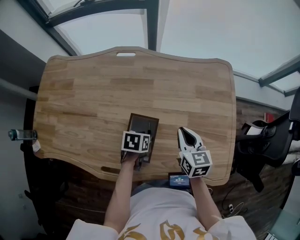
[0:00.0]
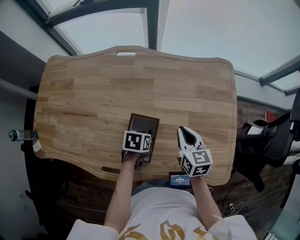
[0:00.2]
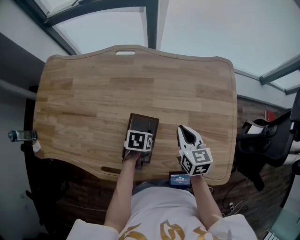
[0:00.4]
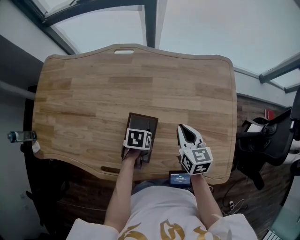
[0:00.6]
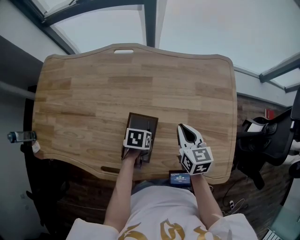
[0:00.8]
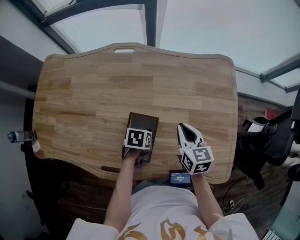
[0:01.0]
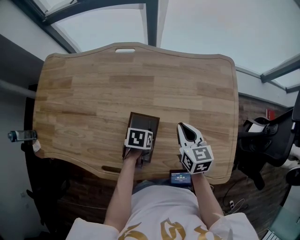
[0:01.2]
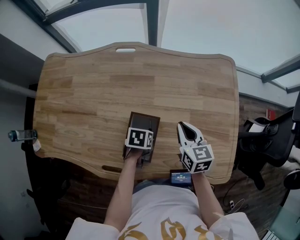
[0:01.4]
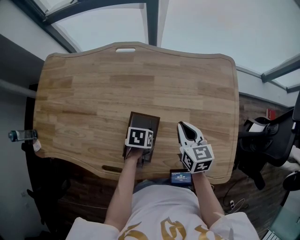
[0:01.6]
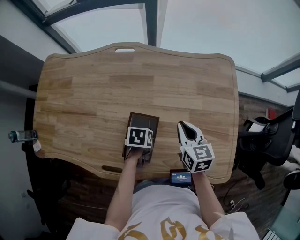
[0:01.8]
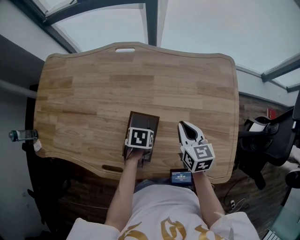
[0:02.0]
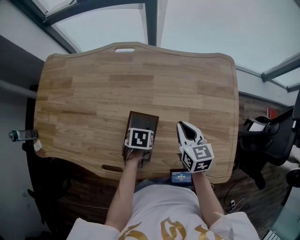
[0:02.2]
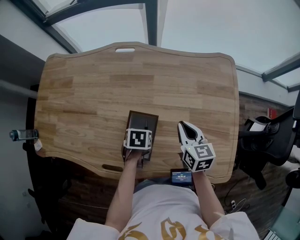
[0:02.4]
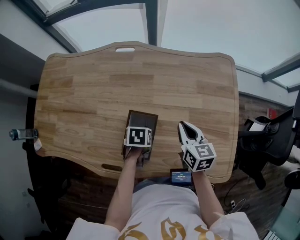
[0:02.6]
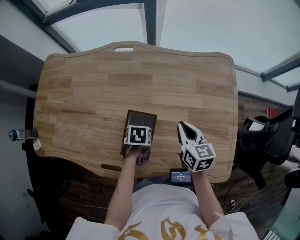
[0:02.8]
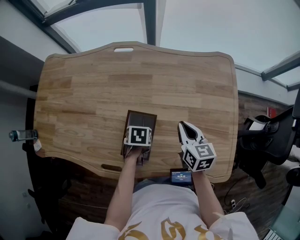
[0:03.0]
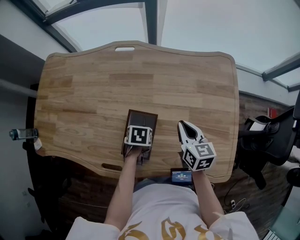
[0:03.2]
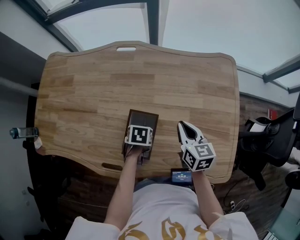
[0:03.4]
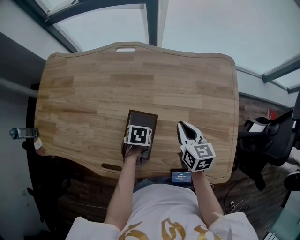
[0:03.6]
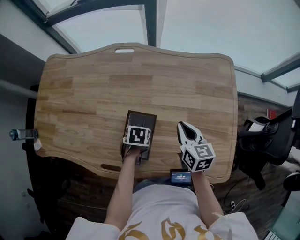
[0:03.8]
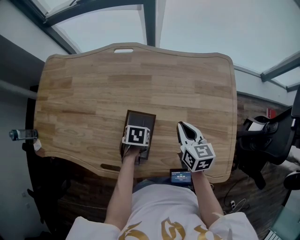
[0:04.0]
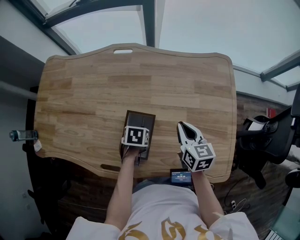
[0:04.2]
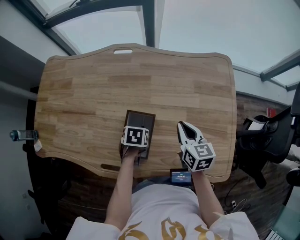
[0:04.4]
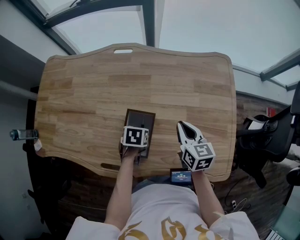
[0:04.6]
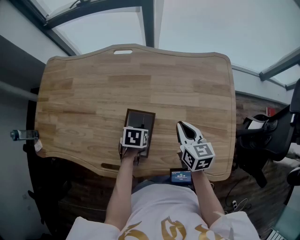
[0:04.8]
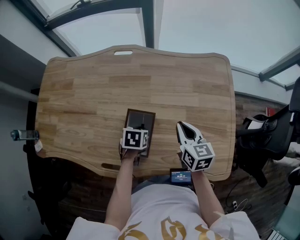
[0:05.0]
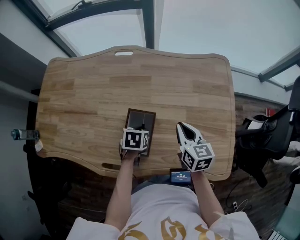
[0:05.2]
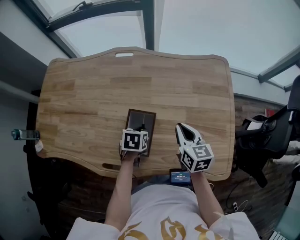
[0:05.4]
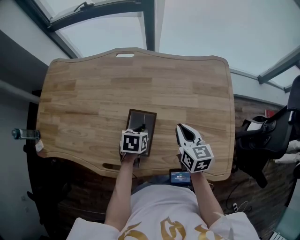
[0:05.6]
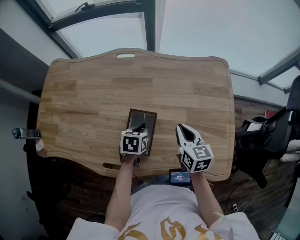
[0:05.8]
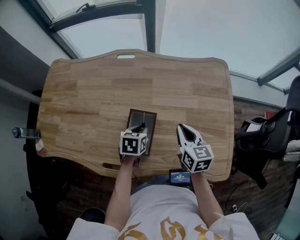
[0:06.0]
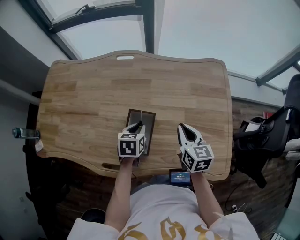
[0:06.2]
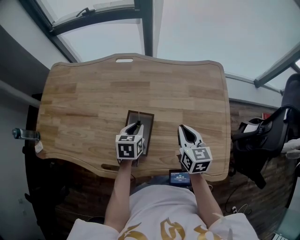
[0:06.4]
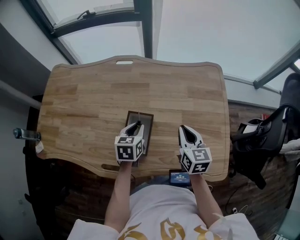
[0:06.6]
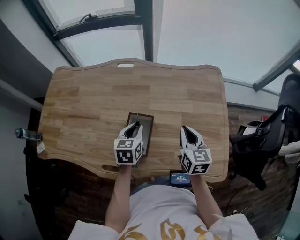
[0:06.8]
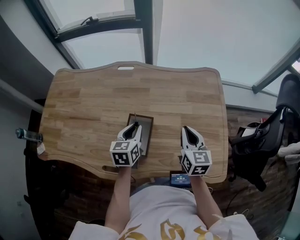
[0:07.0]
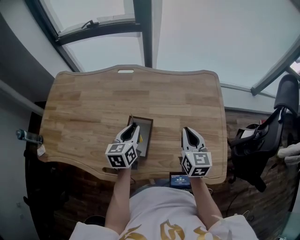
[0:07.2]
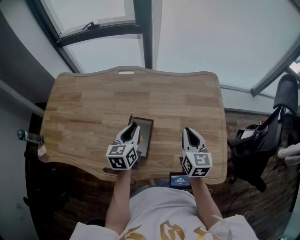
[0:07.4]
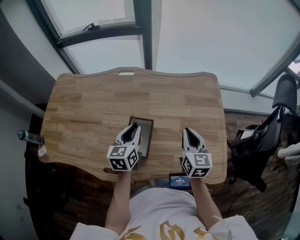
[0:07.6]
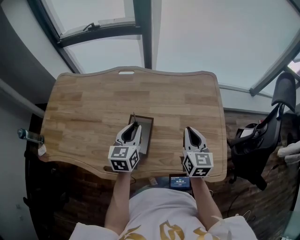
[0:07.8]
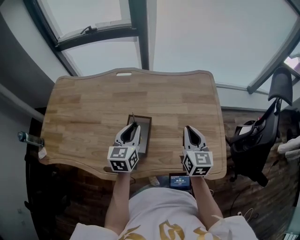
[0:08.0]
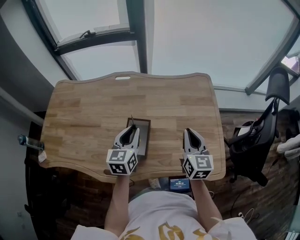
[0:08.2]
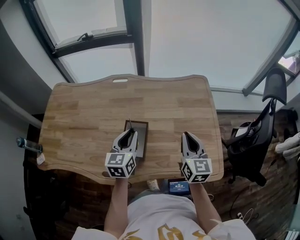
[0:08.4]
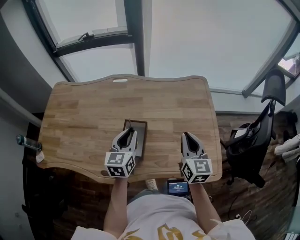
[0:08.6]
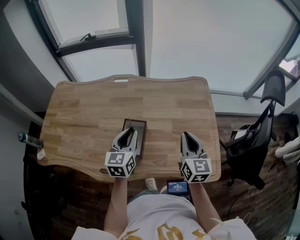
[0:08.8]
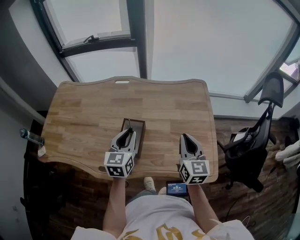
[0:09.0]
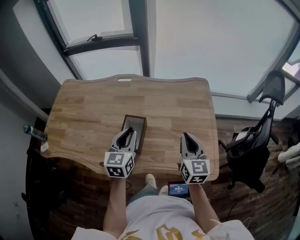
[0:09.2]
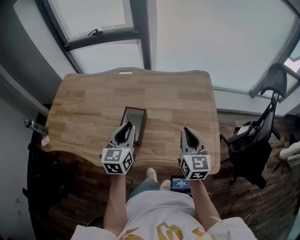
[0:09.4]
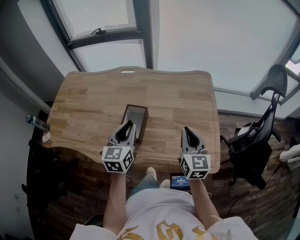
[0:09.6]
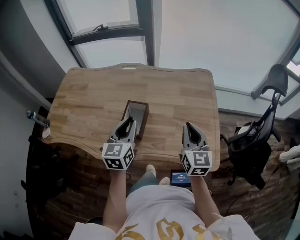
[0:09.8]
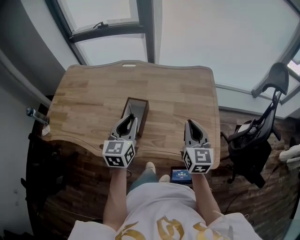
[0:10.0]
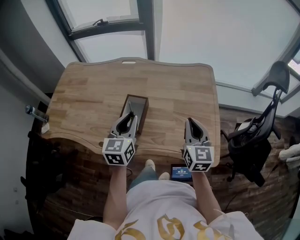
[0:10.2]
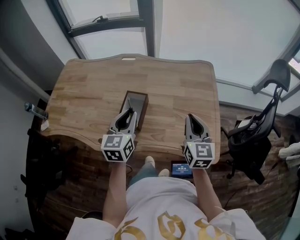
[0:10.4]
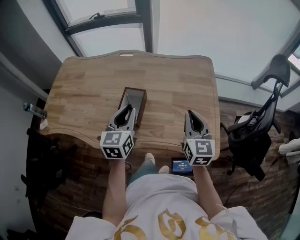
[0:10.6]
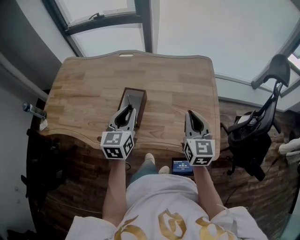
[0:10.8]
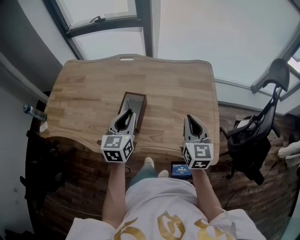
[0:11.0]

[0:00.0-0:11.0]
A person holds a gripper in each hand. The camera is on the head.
0:00.0 to 0:04.8: The grippers stay close to where they were, moving slightly.
0:04.8 to 0:06.2: The left gripper goes approximately 5 cm upward, and turns by about 20 degrees.
0:06.2 to 0:07.8: The right gripper is displaced upward by roughly 5 cm. Meanwhile the left gripper heads upward, covering about 15 cm, and swivels about 30 degrees.
0:07.8 to 0:09.4: The right gripper heads backward, covering about 10 cm; the left gripper heads backward and upward, covering approximately 10 cm.
0:09.4 to 0:11.0: The grippers move only a little.

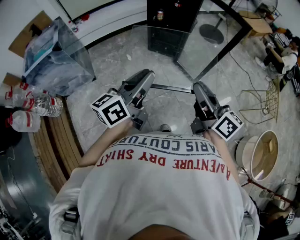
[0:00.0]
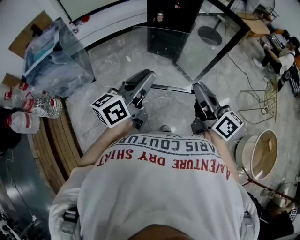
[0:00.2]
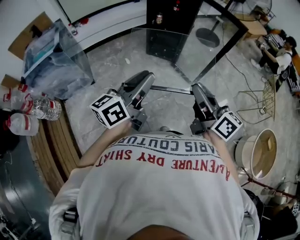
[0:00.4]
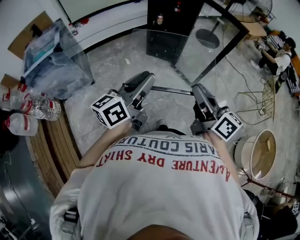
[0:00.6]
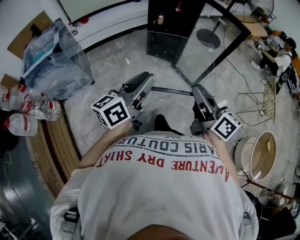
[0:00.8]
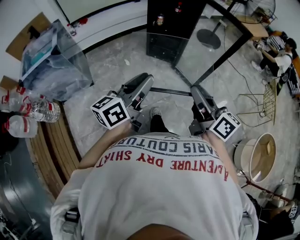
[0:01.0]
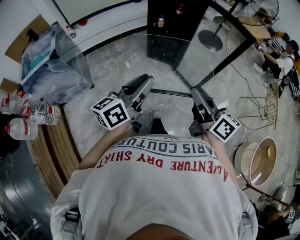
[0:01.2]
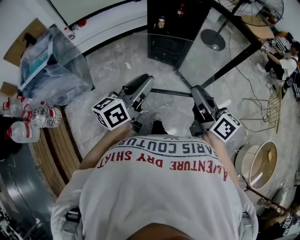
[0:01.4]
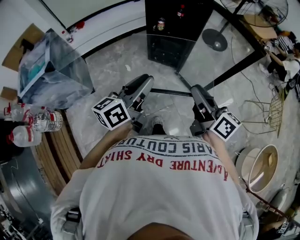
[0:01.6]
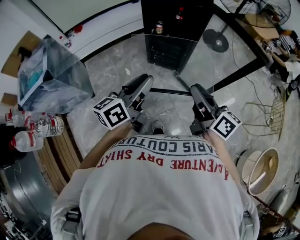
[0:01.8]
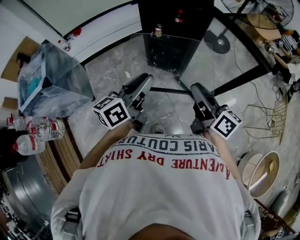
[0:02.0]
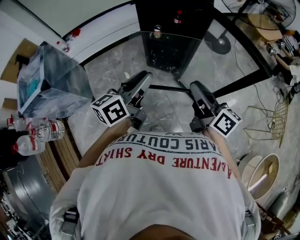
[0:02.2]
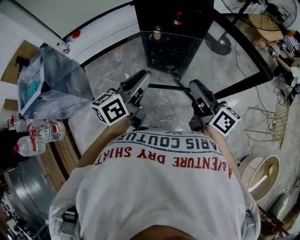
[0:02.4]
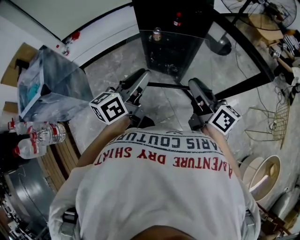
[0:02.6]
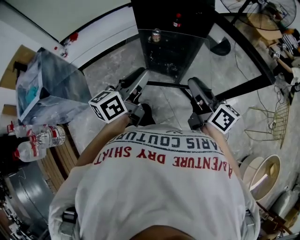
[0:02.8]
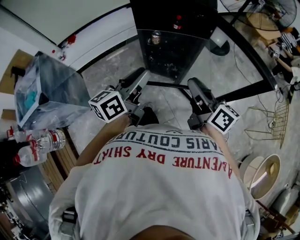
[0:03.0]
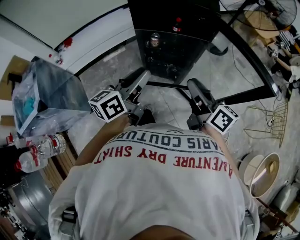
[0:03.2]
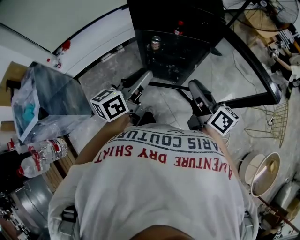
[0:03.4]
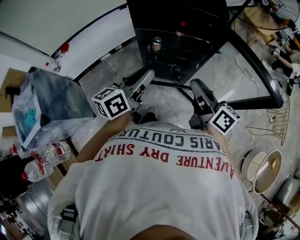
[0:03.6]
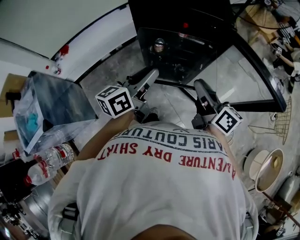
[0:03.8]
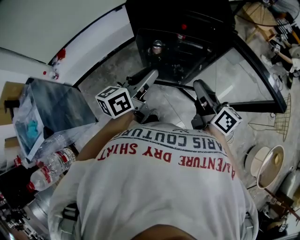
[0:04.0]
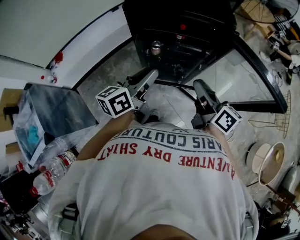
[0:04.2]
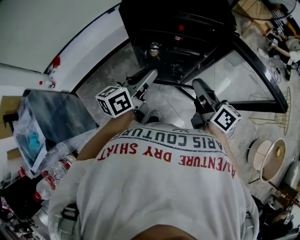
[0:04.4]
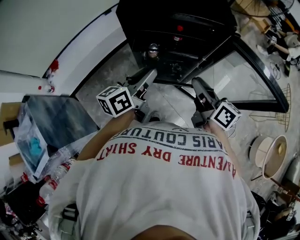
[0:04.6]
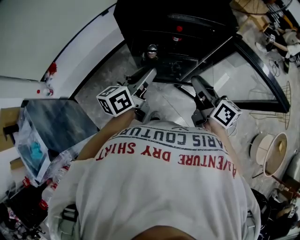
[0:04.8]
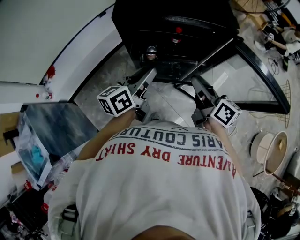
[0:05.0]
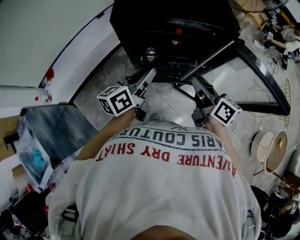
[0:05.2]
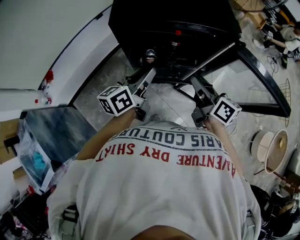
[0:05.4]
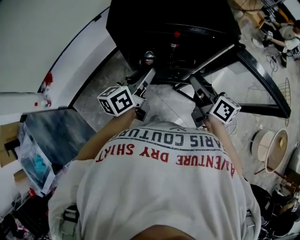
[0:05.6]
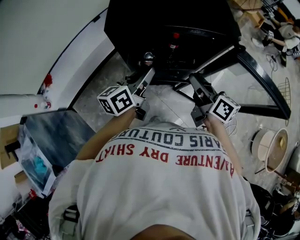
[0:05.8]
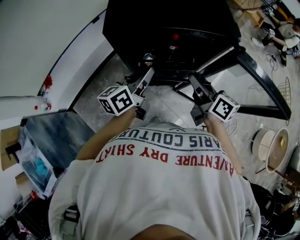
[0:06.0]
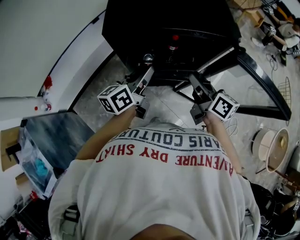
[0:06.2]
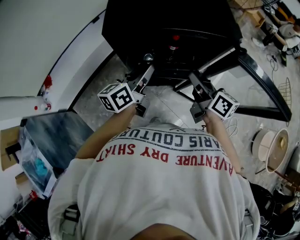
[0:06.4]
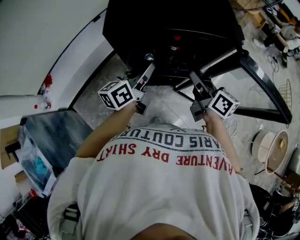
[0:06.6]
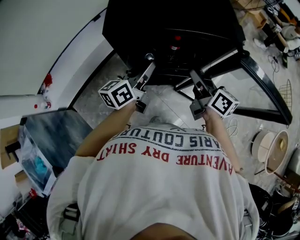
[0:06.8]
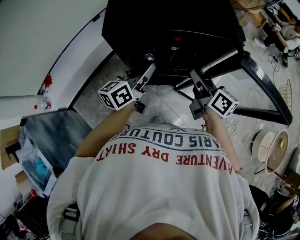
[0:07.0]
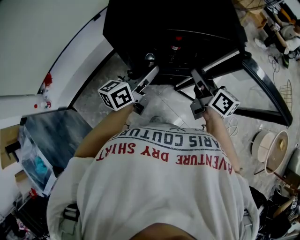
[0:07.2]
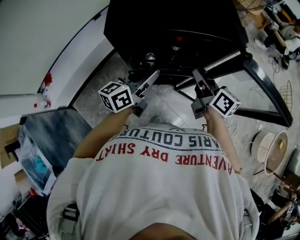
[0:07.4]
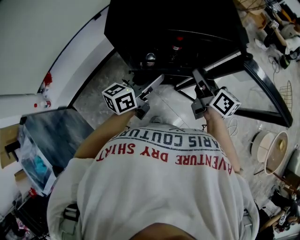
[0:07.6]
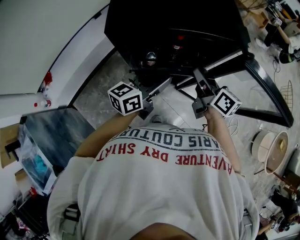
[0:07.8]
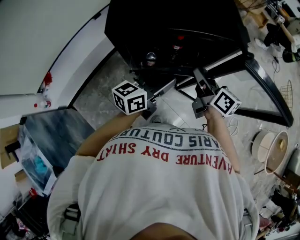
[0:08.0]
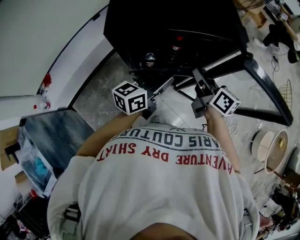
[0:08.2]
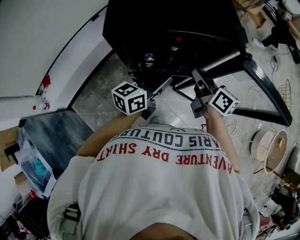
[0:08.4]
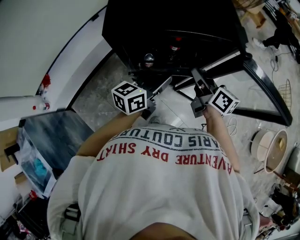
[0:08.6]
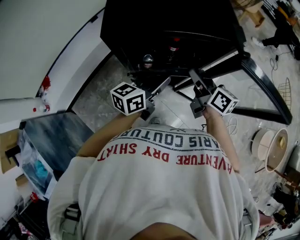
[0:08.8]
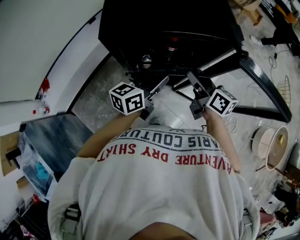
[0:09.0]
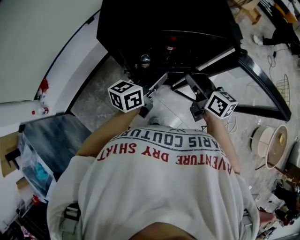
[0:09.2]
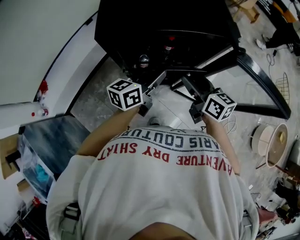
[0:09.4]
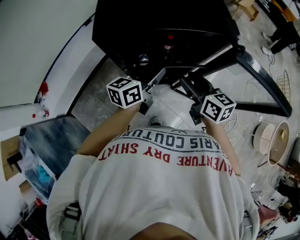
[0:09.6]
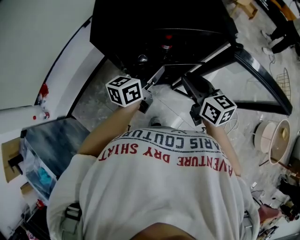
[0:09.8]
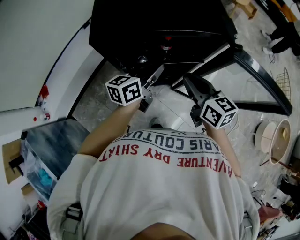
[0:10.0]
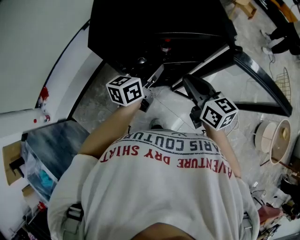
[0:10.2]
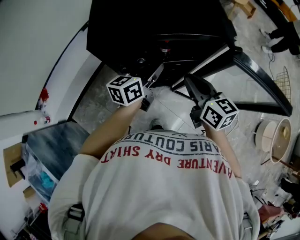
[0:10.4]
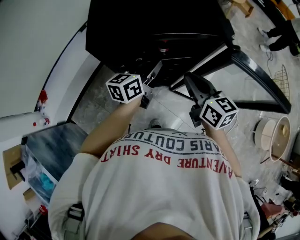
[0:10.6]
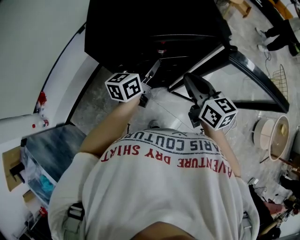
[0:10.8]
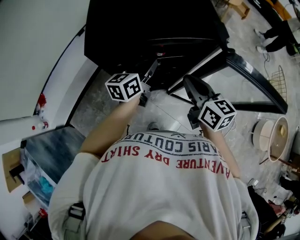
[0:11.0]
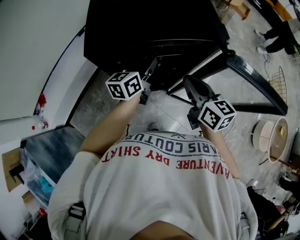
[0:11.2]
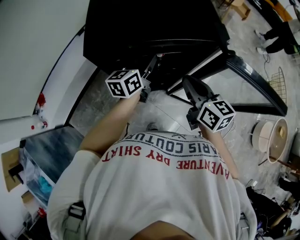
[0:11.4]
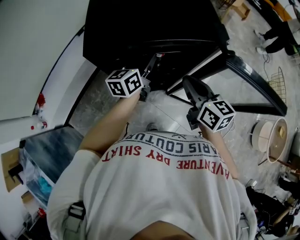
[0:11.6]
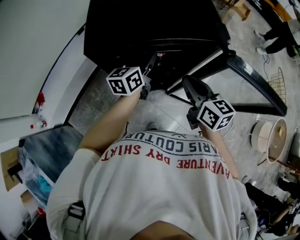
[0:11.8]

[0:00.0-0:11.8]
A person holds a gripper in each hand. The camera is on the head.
0:00.0 to 0:01.4: The two grippers go approximately 10 cm forward.
0:01.4 to 0:03.0: Both grippers travel together forward, about 25 cm.
0:03.0 to 0:04.4: The two grippers go about 15 cm forward.
0:04.4 to 0:06.0: Both grippers move forward, roughly 10 cm.
0:06.0 to 0:07.4: The left gripper opens.
0:07.4 to 0:08.8: The left gripper goes some 5 cm to the right, and closes up.
0:08.8 to 0:10.4: The right gripper changes its angle by approximately 20 degrees, and closes its fingers, while the left gripper shifts about 5 cm forward.
0:10.4 to 0:11.8: The left gripper heads forward, covering some 5 cm.

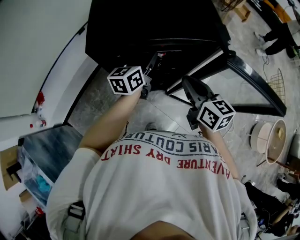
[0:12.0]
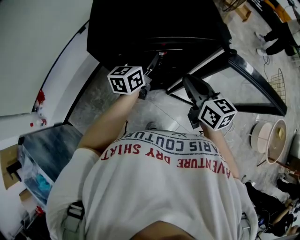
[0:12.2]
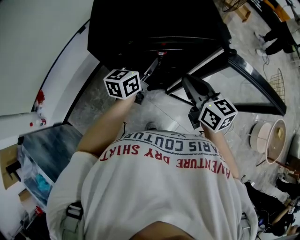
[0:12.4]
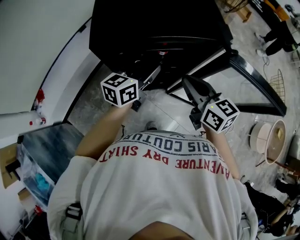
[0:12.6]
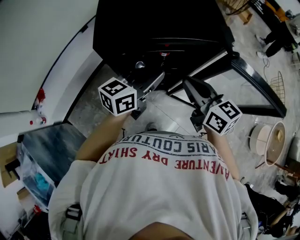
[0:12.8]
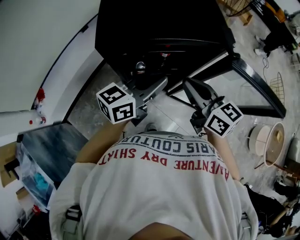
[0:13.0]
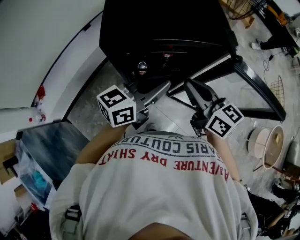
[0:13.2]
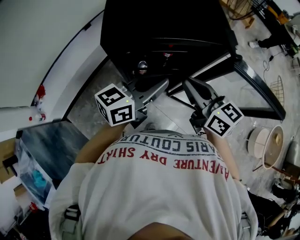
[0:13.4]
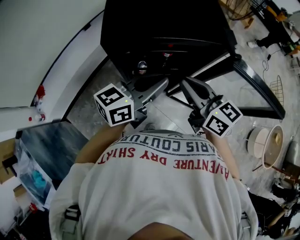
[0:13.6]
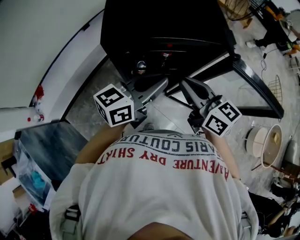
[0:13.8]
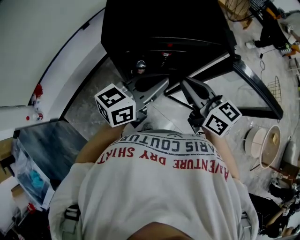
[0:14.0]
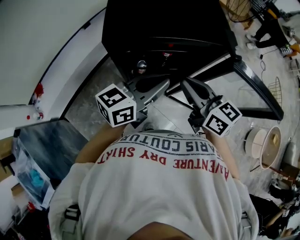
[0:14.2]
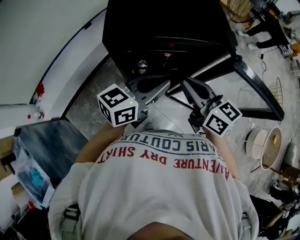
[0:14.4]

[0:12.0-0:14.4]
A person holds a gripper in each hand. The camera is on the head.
0:12.0 to 0:13.2: The right gripper travels upward by approximately 5 cm, while the left gripper goes roughly 15 cm backward and upward, changes its angle by roughly 30 degrees, and closes its fingers.
0:13.2 to 0:14.4: The grippers stay close to where they were, moving slightly.
